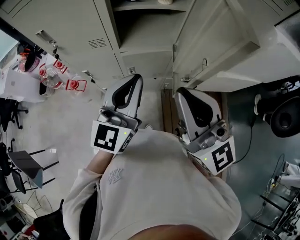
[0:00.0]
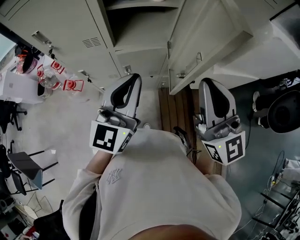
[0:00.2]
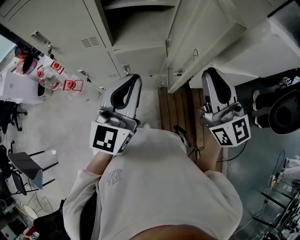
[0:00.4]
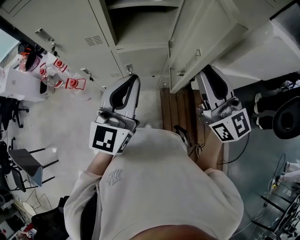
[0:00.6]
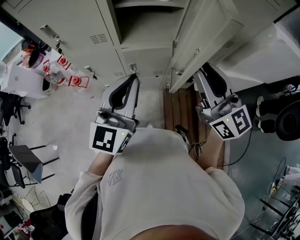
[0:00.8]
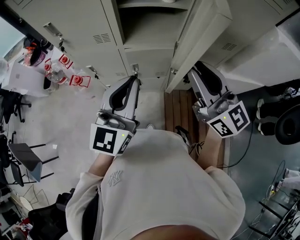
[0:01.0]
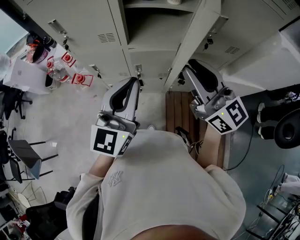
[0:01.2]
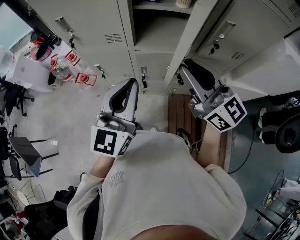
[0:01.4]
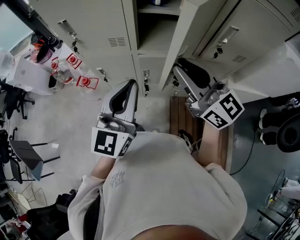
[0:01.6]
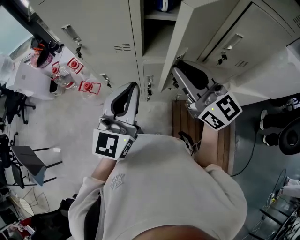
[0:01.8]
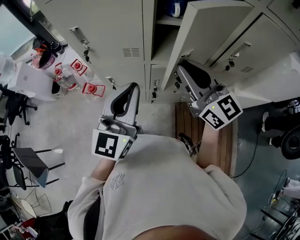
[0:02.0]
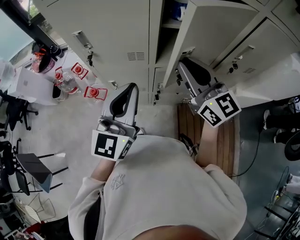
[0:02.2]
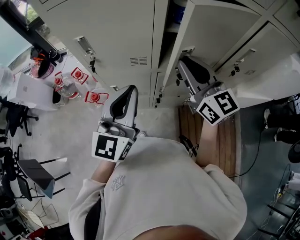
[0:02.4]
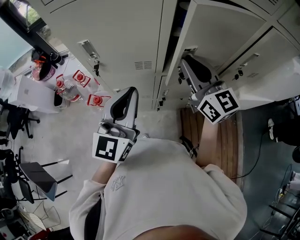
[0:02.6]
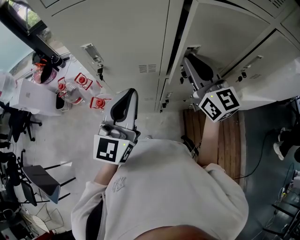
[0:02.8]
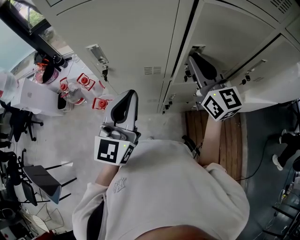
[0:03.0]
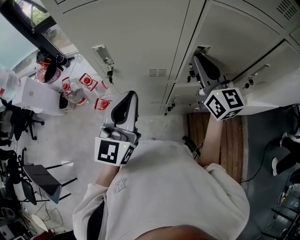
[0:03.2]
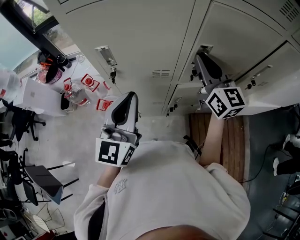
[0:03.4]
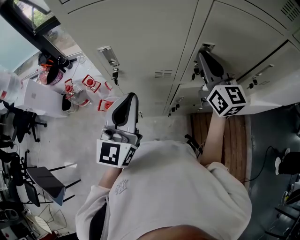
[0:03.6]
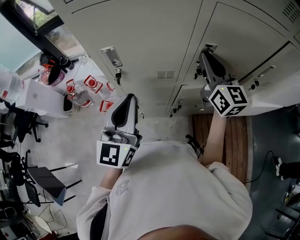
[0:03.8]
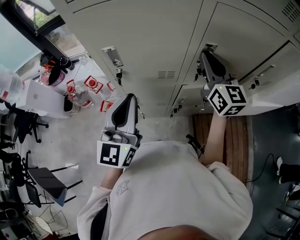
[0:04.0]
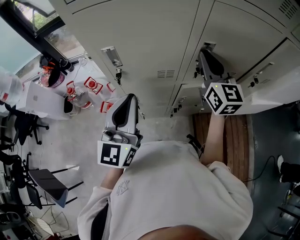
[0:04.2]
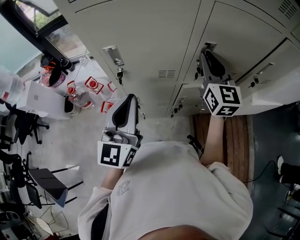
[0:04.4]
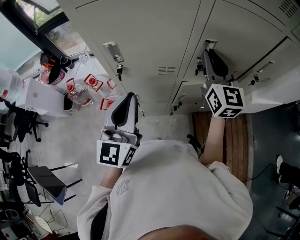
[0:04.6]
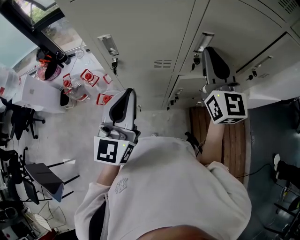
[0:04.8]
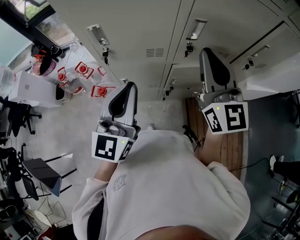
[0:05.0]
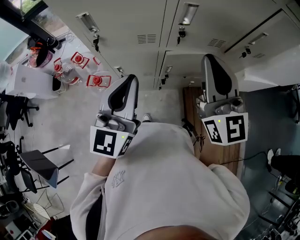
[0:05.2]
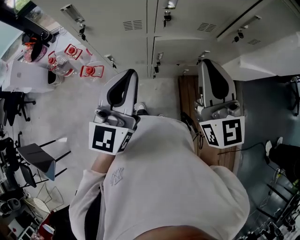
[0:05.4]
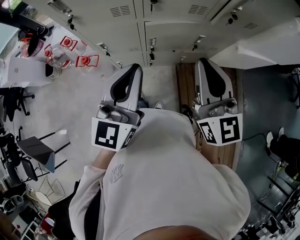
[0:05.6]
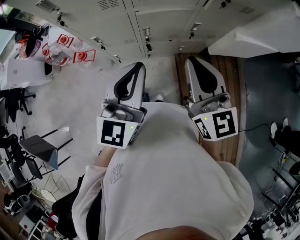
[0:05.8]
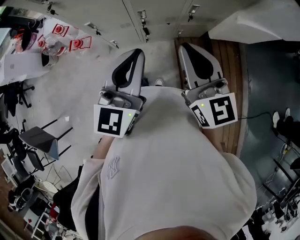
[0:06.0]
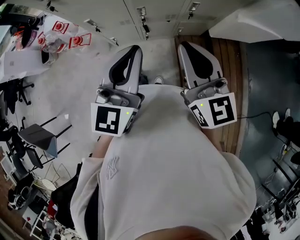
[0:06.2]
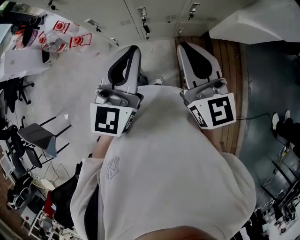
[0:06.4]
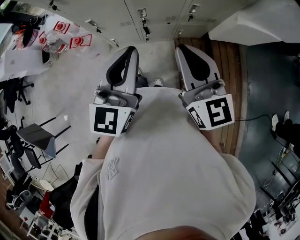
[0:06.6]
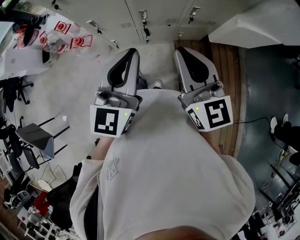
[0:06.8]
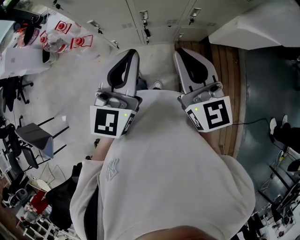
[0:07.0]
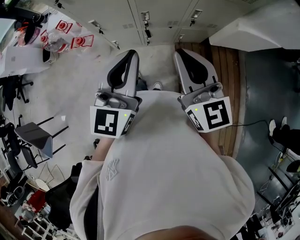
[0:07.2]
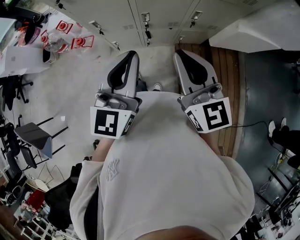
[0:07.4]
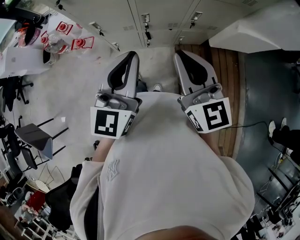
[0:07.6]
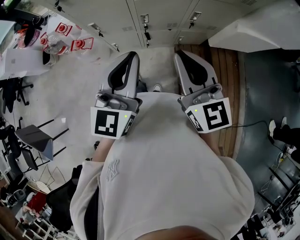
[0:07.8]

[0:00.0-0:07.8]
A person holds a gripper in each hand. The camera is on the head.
0:00.0 to 0:01.6: The right gripper moves forward, approximately 10 cm, travels to the right and back again, approximately 10 cm each way, and rotates about 20 degrees. Meanwhile the left gripper heads to the left, covering approximately 5 cm.
0:01.6 to 0:03.2: The right gripper moves forward and to the left, approximately 20 cm, and swivels about 20 degrees; the left gripper shifts about 20 cm to the left and forward.
0:03.2 to 0:04.6: The grippers stay close to where they were, moving slightly.
0:04.6 to 0:06.2: The left gripper is displaced to the right and backward by approximately 30 cm; the right gripper moves backward and to the right, approximately 30 cm.
0:06.2 to 0:07.8: There are only small adjustments of the grippers.

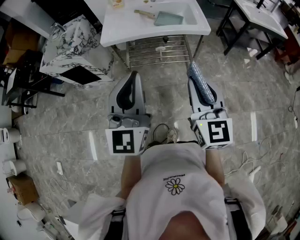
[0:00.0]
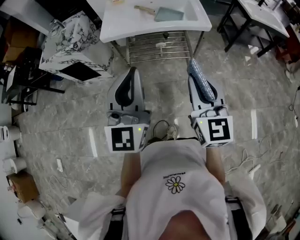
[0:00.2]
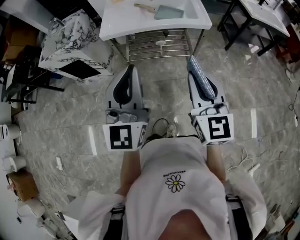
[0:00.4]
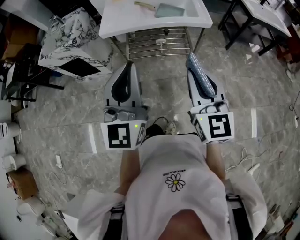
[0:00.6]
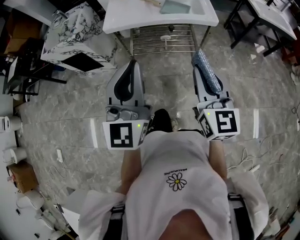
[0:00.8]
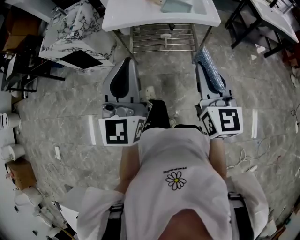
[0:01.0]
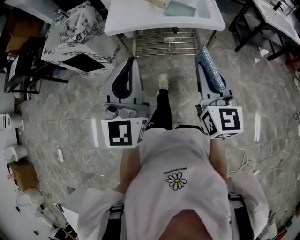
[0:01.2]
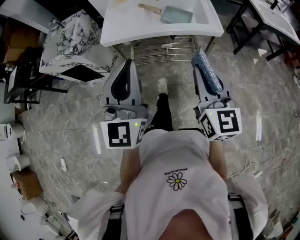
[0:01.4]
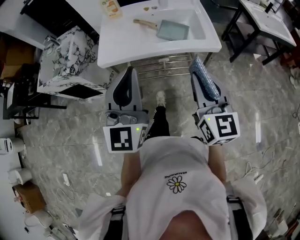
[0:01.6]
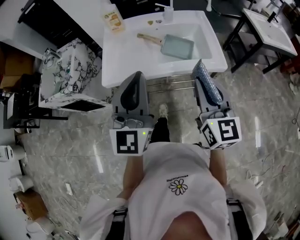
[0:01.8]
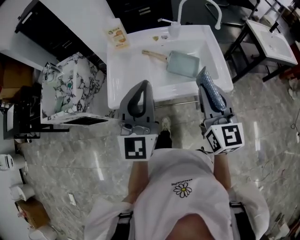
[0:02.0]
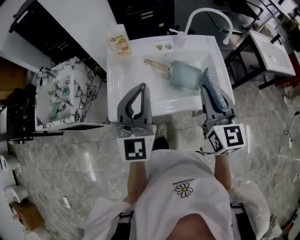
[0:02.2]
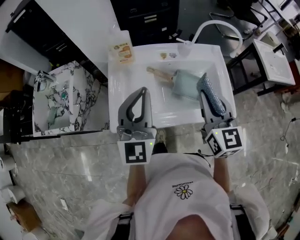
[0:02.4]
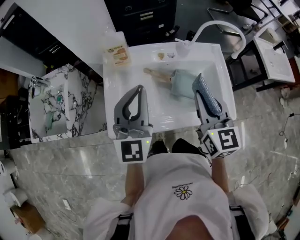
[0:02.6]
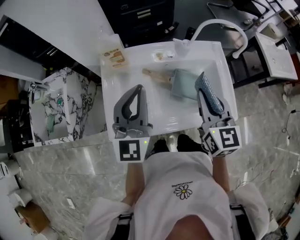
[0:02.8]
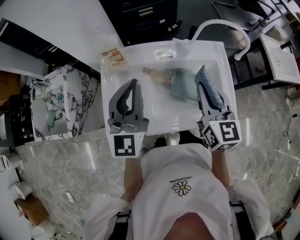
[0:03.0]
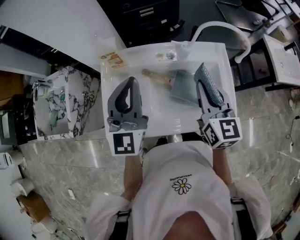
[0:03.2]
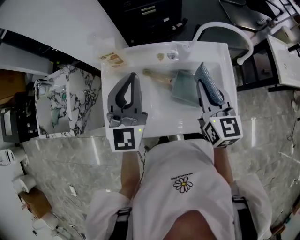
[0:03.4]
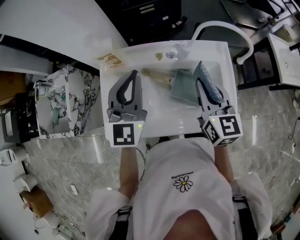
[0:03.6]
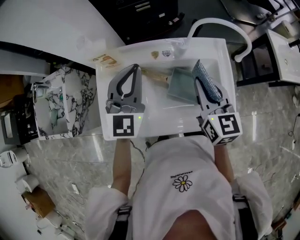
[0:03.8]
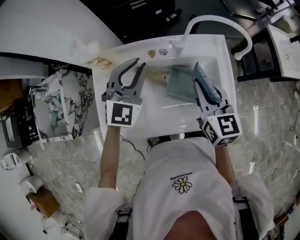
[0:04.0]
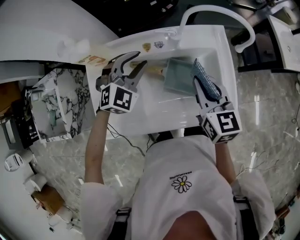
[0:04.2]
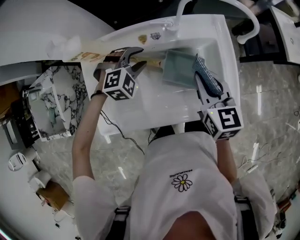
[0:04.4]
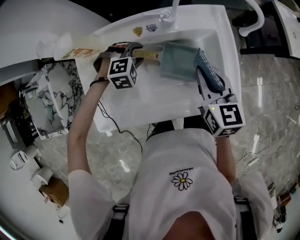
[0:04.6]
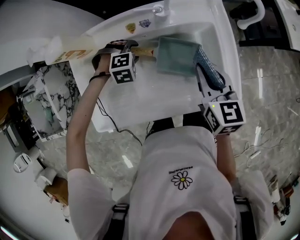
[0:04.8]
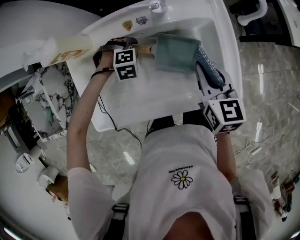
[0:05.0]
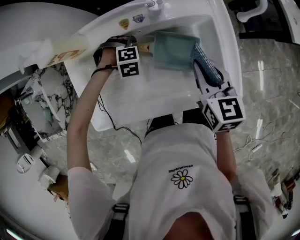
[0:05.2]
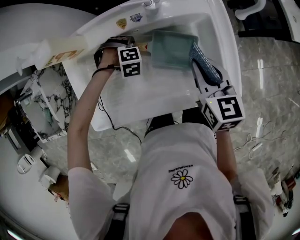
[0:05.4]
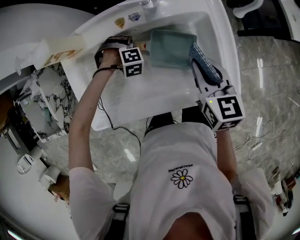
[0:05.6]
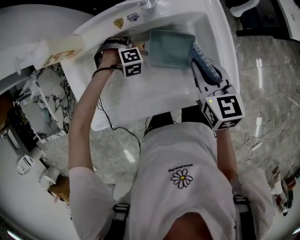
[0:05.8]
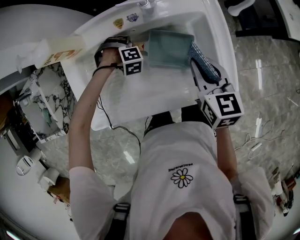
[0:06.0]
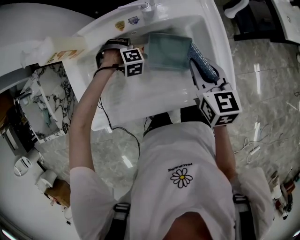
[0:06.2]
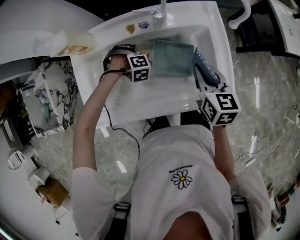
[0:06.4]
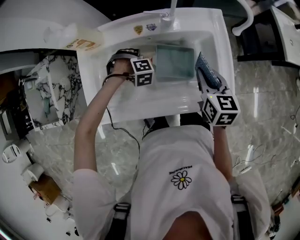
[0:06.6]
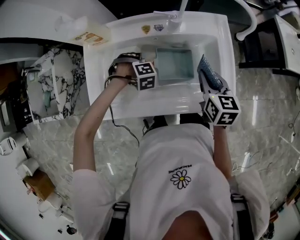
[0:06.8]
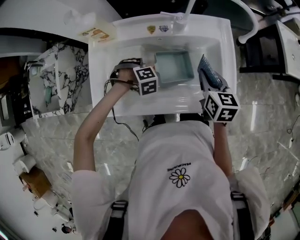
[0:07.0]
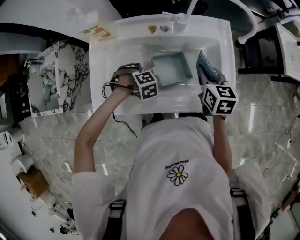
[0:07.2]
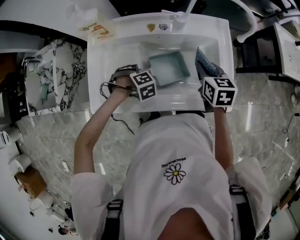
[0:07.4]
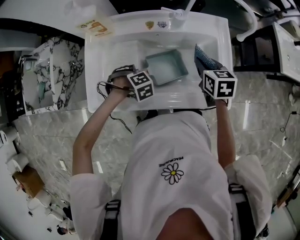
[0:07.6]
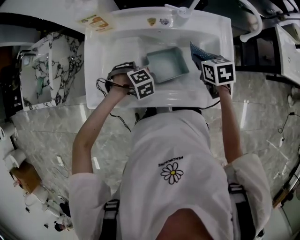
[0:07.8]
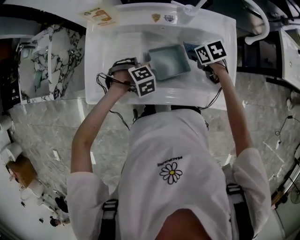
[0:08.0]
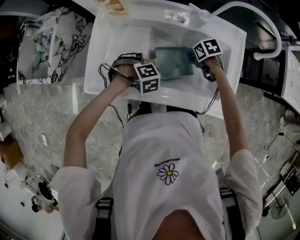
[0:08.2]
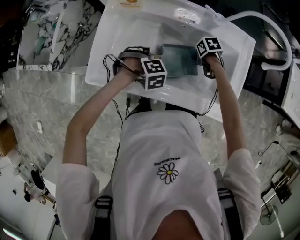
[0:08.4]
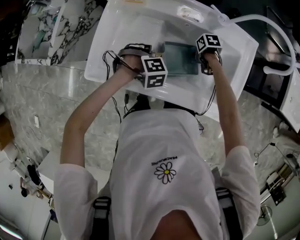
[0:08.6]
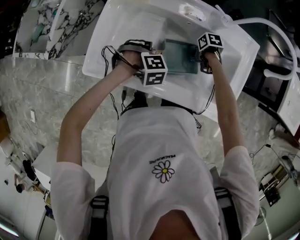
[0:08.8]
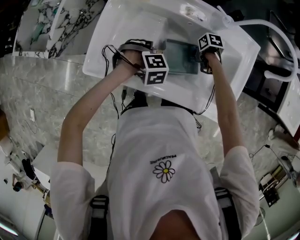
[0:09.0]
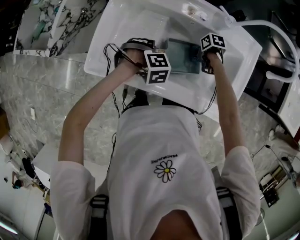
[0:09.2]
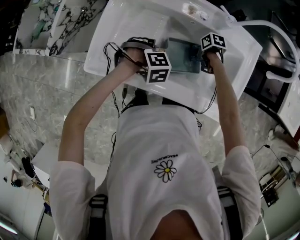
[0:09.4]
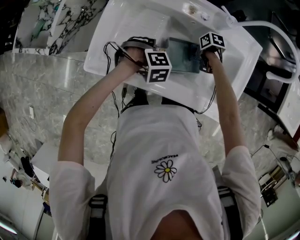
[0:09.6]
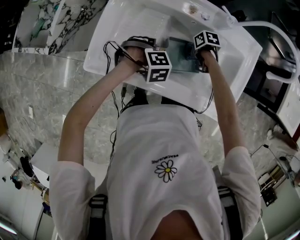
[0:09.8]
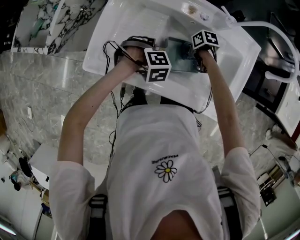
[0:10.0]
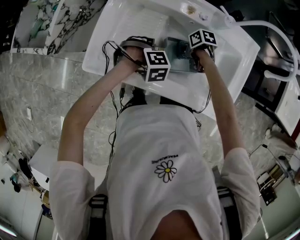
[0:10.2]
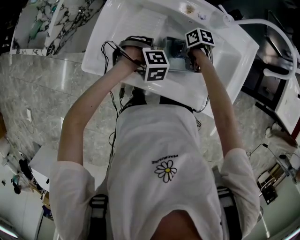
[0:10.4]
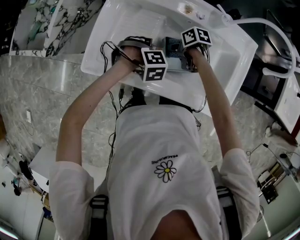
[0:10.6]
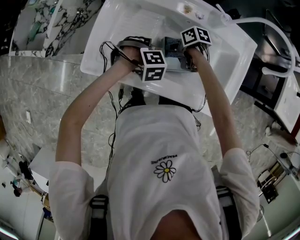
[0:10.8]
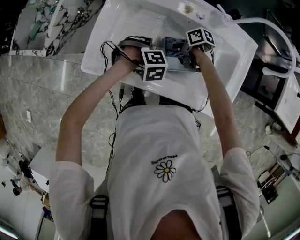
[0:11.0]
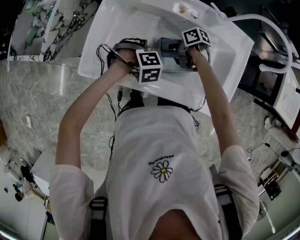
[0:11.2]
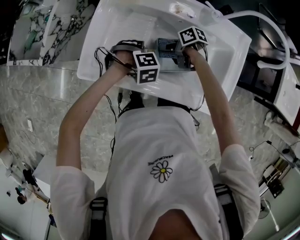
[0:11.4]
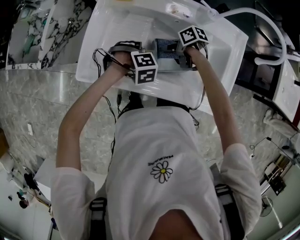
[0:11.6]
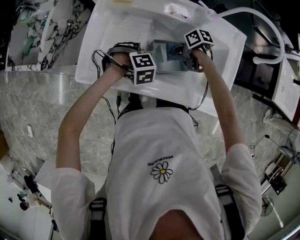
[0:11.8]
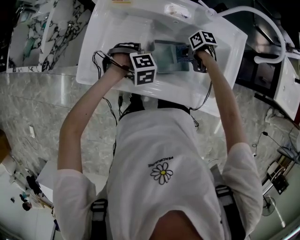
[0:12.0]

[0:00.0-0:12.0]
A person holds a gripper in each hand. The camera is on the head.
0:00.0 to 0:01.6: The right gripper changes place by about 20 cm.
0:01.6 to 0:03.0: The right gripper shifts by about 40 cm.
0:03.0 to 0:04.4: The right gripper moves downward, some 10 cm.
0:04.4 to 0:06.0: The right gripper heads downward, covering about 5 cm.
0:07.6 to 0:09.0: The right gripper shifts about 20 cm downward, and turns by about 50 degrees.
0:09.0 to 0:10.4: The right gripper ends up about 10 cm from where it was.
0:10.4 to 0:12.0: The right gripper shifts by about 10 cm.

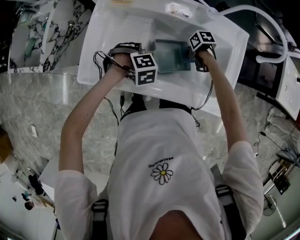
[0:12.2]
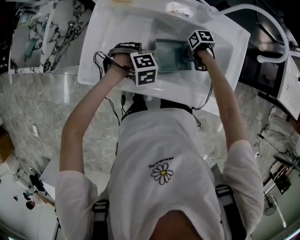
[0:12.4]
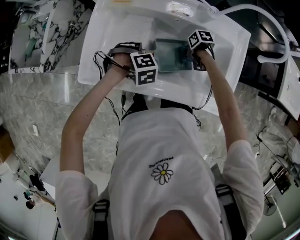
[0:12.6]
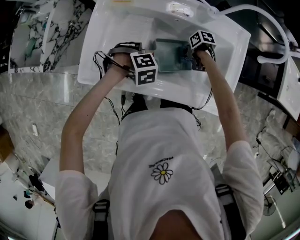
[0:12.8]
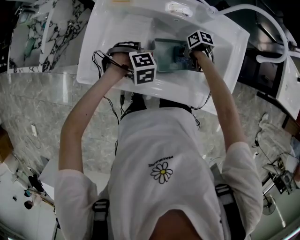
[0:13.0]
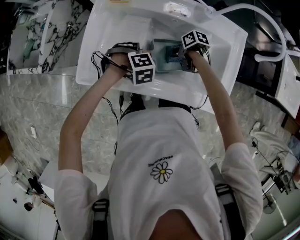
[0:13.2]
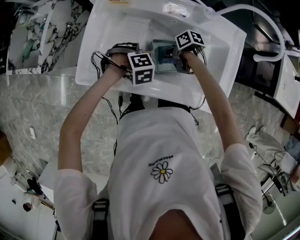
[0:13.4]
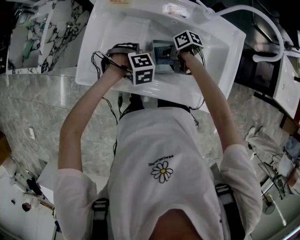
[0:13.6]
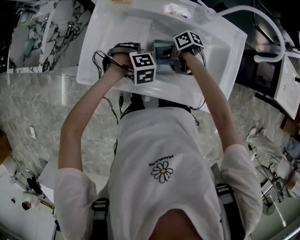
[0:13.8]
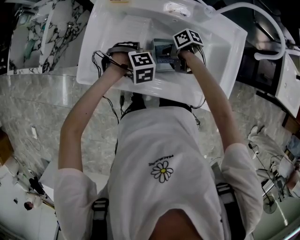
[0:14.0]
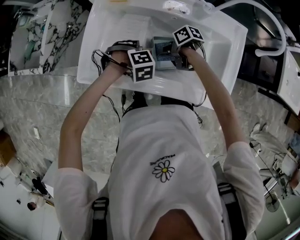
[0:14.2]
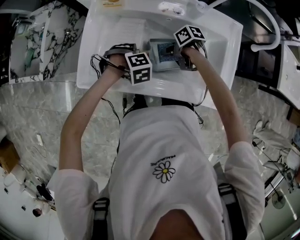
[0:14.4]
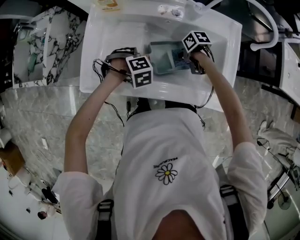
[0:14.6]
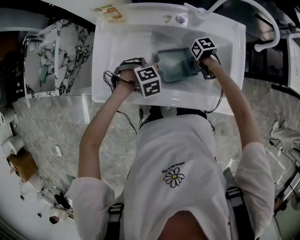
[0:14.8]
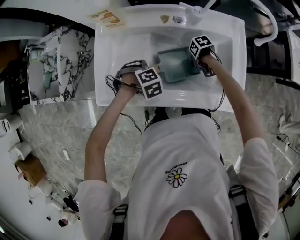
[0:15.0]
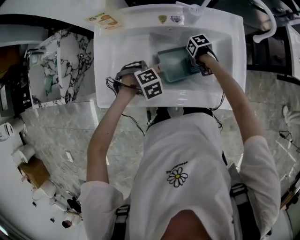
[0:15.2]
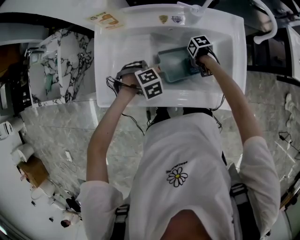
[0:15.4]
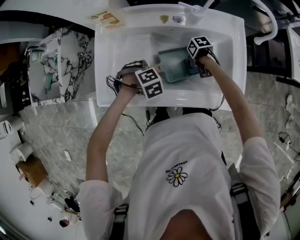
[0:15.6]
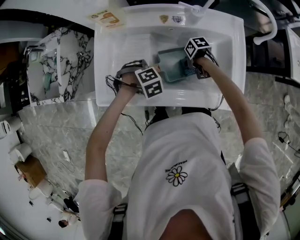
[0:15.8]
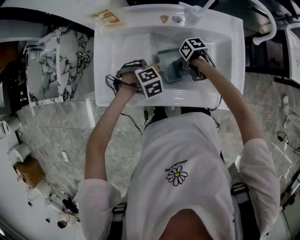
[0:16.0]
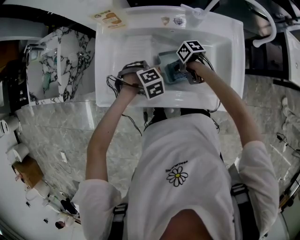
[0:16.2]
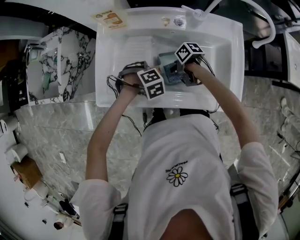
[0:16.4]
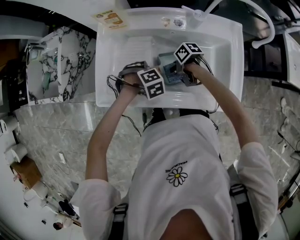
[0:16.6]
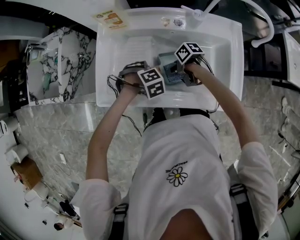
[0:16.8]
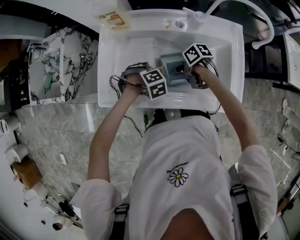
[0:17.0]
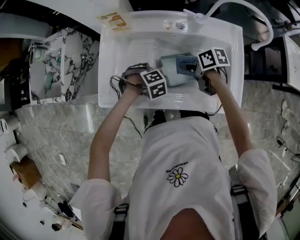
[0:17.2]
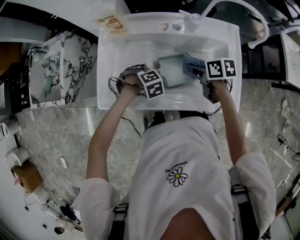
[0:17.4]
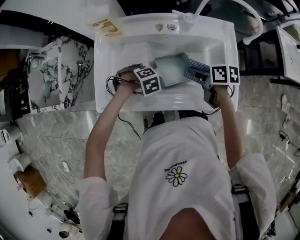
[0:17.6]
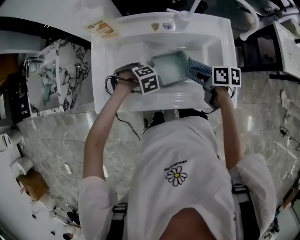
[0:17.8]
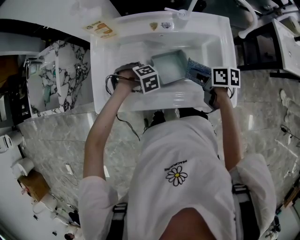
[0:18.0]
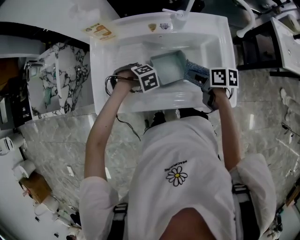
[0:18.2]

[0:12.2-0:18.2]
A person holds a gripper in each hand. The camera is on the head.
0:12.2 to 0:13.8: The right gripper shifts by roughly 15 cm, and changes its angle by roughly 30 degrees.
0:13.8 to 0:15.2: The right gripper moves about 15 cm, and changes its angle by roughly 30 degrees.
0:15.2 to 0:16.6: The right gripper moves some 15 cm, and swivels some 30 degrees.
0:16.6 to 0:18.2: The right gripper moves roughly 15 cm, and swivels roughly 40 degrees.
